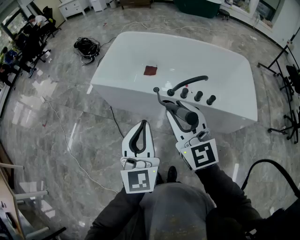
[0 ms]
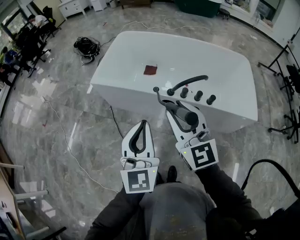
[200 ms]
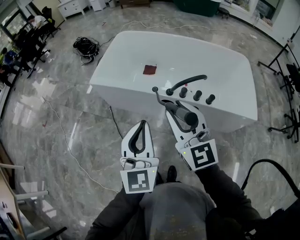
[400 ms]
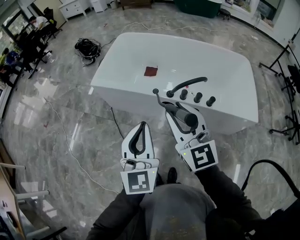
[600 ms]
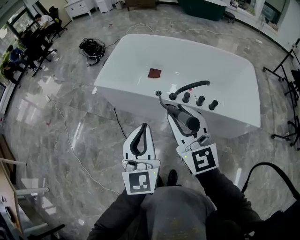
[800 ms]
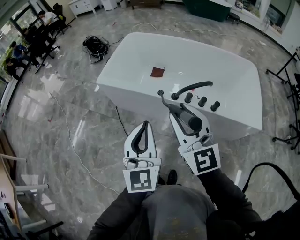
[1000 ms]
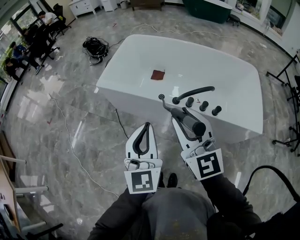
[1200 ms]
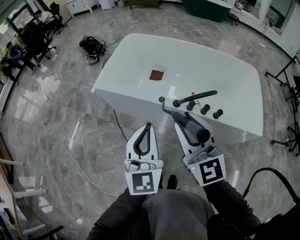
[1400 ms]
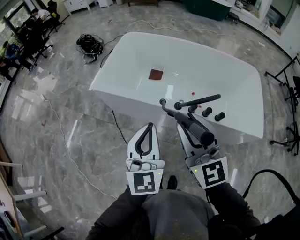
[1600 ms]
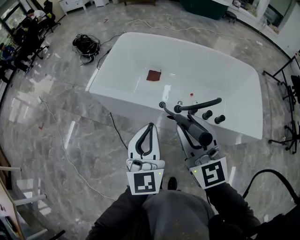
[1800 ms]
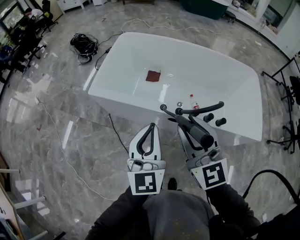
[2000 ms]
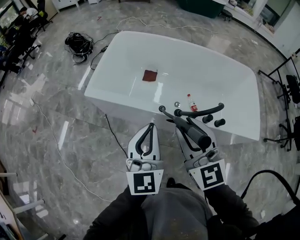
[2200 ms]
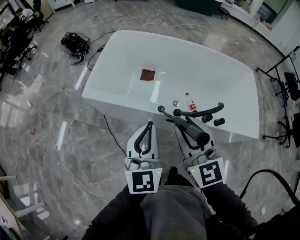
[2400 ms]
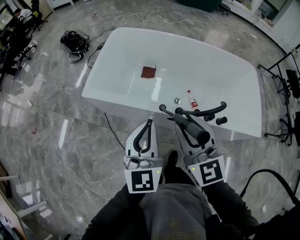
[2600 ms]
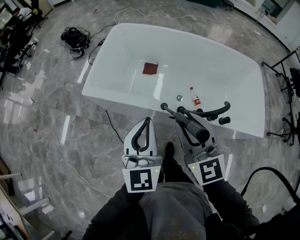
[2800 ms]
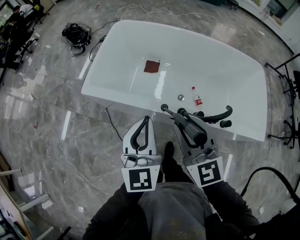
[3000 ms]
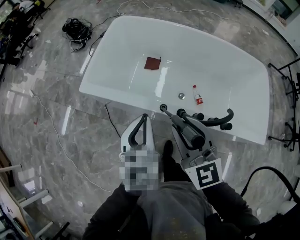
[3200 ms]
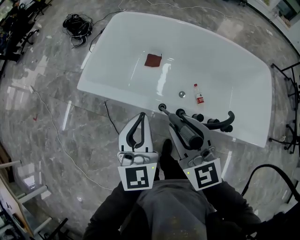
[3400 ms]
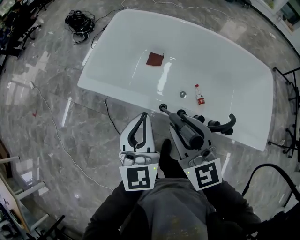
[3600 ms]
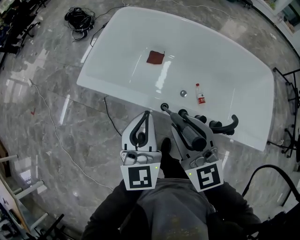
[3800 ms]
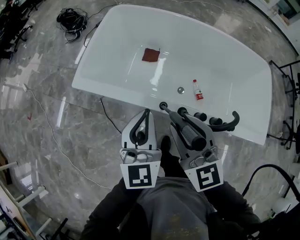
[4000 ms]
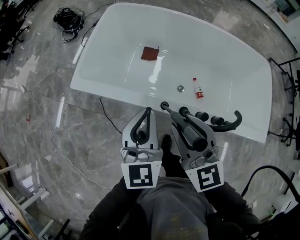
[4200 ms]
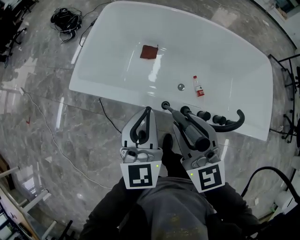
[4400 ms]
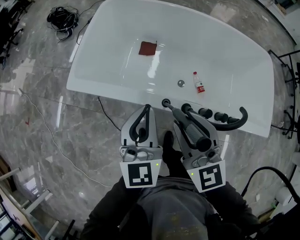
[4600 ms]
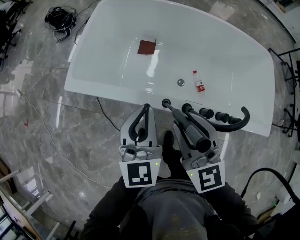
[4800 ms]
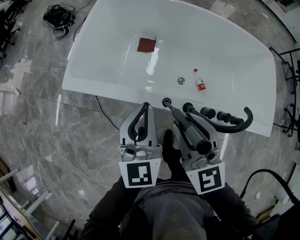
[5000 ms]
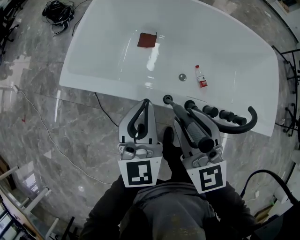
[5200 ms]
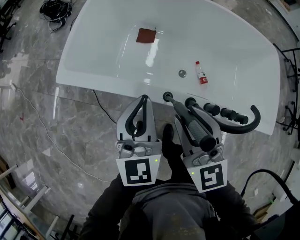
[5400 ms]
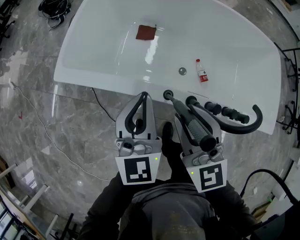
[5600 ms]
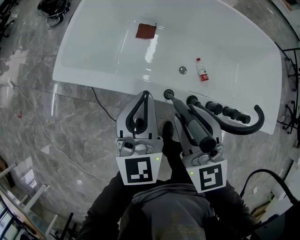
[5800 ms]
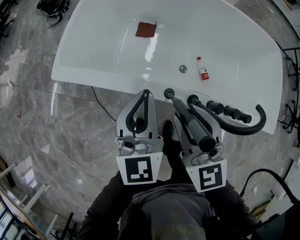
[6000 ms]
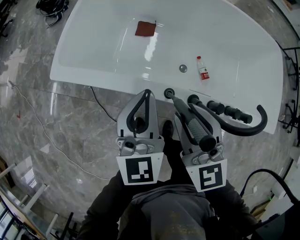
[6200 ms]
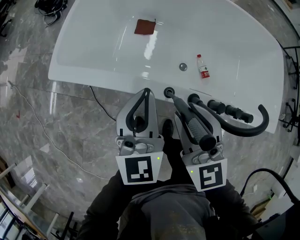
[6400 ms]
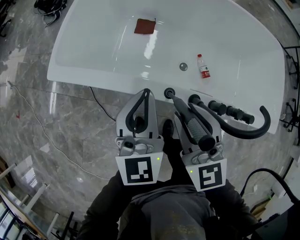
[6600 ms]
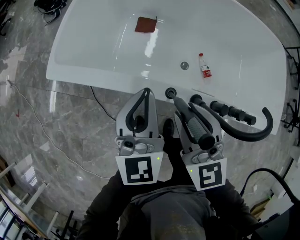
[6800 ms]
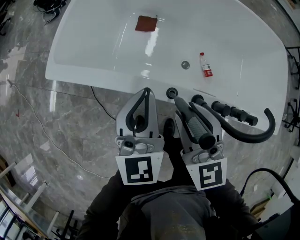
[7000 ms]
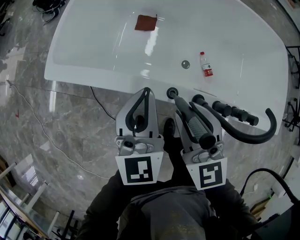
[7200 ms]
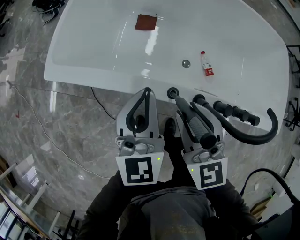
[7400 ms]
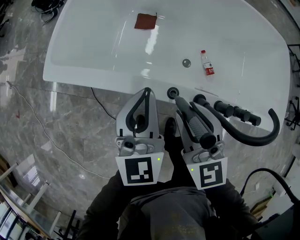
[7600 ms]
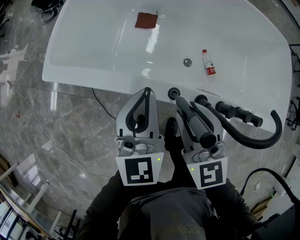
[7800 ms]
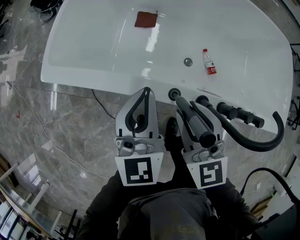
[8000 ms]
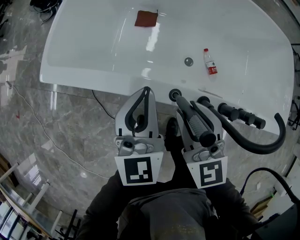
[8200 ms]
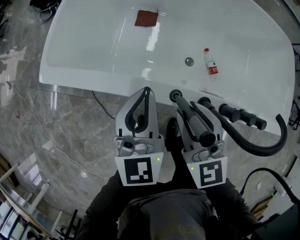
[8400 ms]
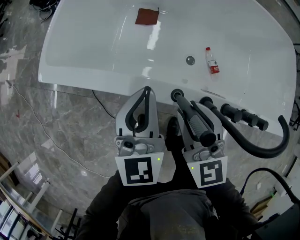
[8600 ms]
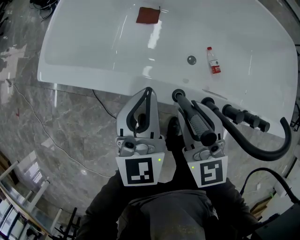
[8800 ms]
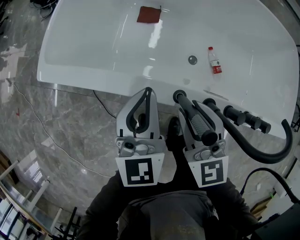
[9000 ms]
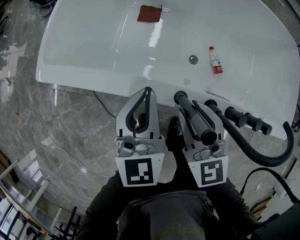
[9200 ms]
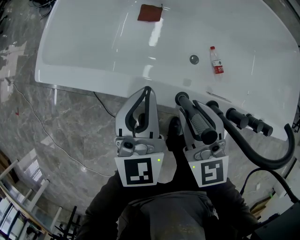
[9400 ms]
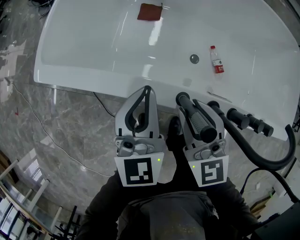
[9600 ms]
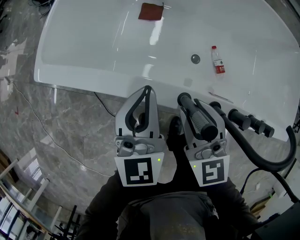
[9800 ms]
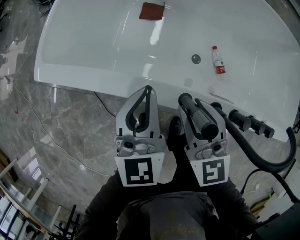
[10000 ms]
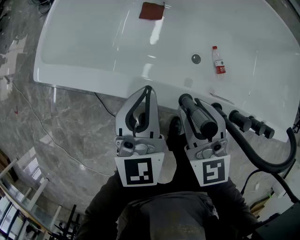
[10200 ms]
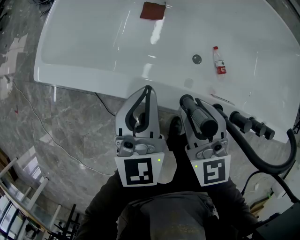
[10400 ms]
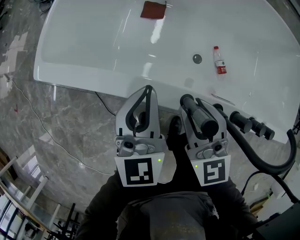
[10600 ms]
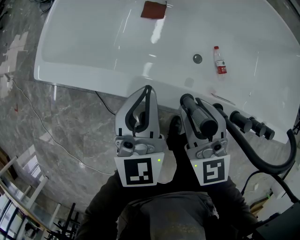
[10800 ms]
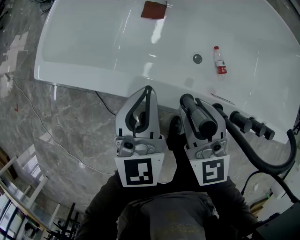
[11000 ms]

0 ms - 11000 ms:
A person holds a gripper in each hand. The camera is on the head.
0 ms - 1600 ms: The two grippers go about 10 cm forward.
1600 ms - 3200 ms: The right gripper travels forward and downward by about 20 cm. The left gripper is displaced forward by some 20 cm.
3200 ms - 4800 ms: Both grippers move downward and forward, about 10 cm.
4800 ms - 6200 ms: The two grippers go approximately 5 cm downward.
6200 ms - 7800 ms: Both grippers move downward, some 5 cm.
7800 ms - 9400 ms: The grippers both shift downward by roughly 5 cm.
9400 ms - 11000 ms: There are only small adjustments of the grippers.

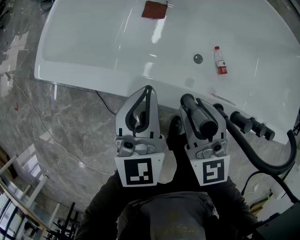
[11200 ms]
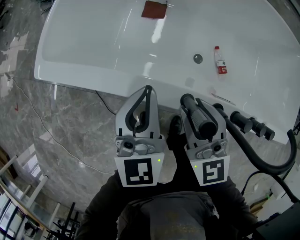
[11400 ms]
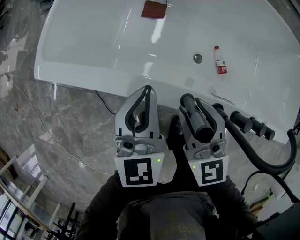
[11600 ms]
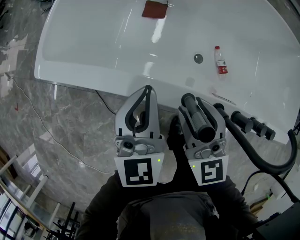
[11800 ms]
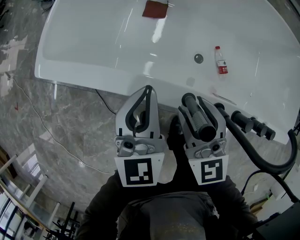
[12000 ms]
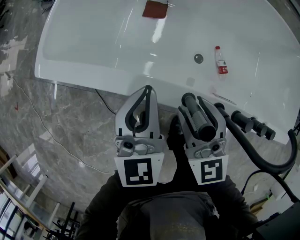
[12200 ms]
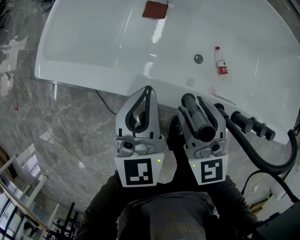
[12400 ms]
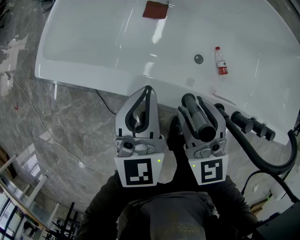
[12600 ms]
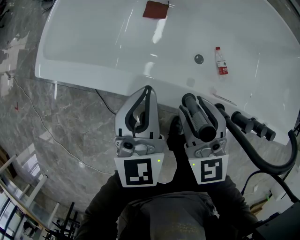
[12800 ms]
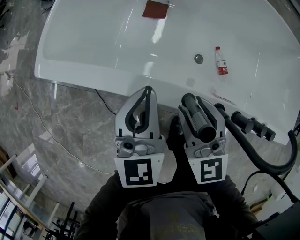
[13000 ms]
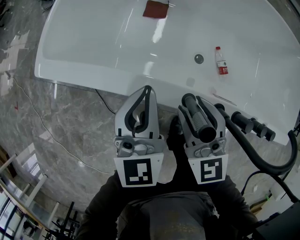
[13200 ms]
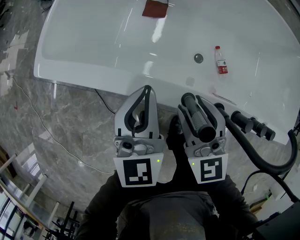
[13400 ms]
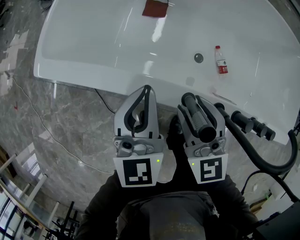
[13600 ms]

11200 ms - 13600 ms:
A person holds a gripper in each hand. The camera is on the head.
11200 ms - 13600 ms: The two grippers keep their place.

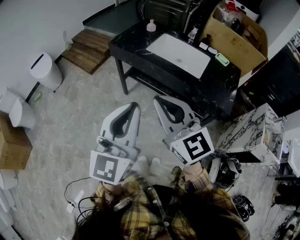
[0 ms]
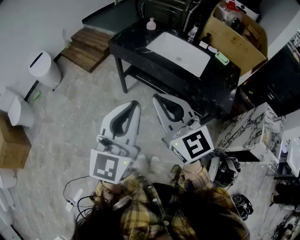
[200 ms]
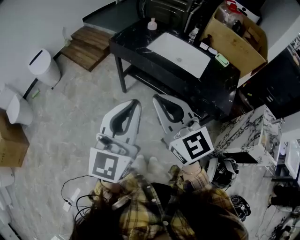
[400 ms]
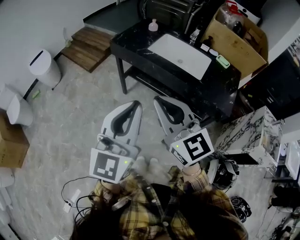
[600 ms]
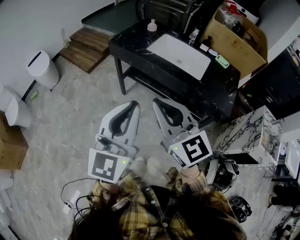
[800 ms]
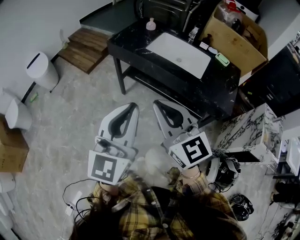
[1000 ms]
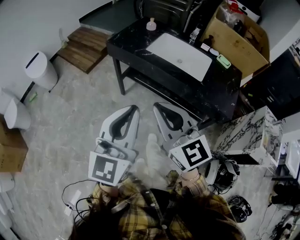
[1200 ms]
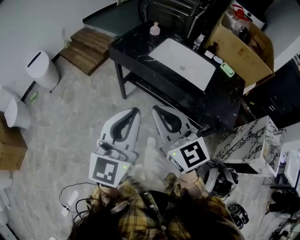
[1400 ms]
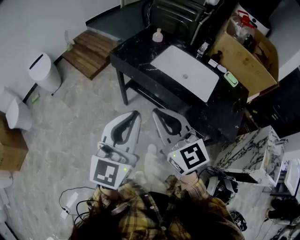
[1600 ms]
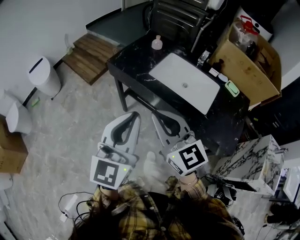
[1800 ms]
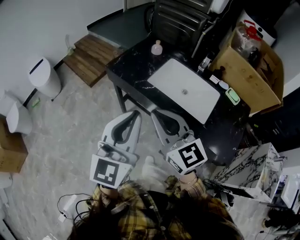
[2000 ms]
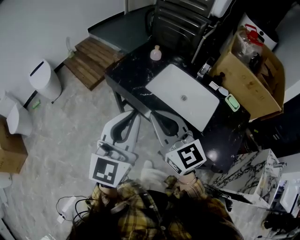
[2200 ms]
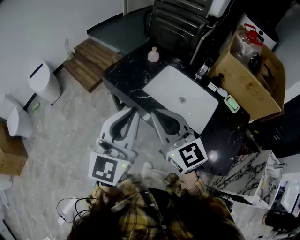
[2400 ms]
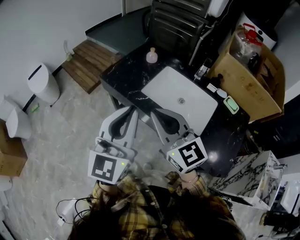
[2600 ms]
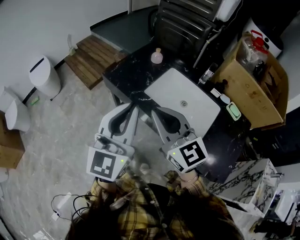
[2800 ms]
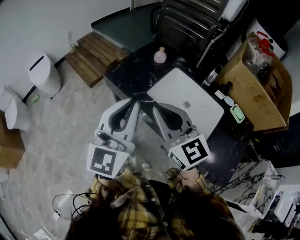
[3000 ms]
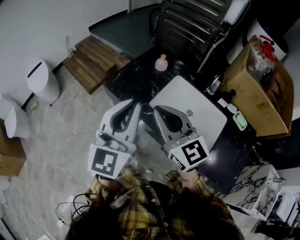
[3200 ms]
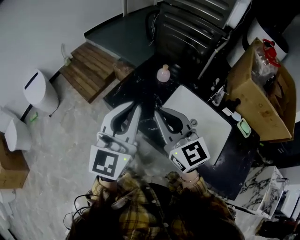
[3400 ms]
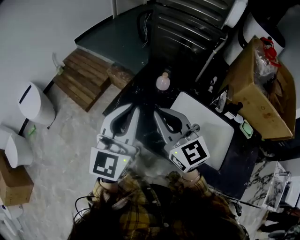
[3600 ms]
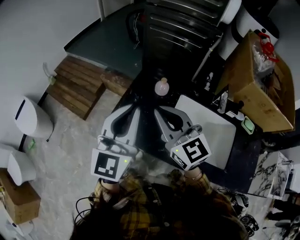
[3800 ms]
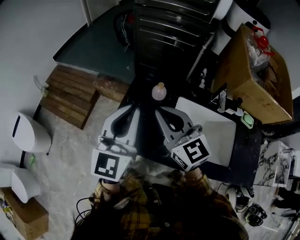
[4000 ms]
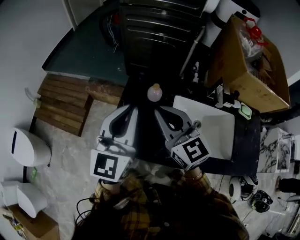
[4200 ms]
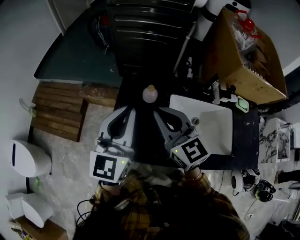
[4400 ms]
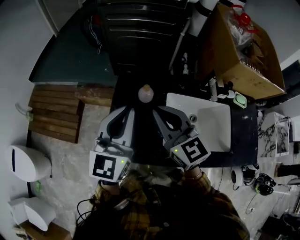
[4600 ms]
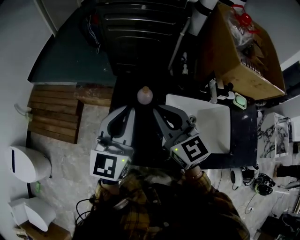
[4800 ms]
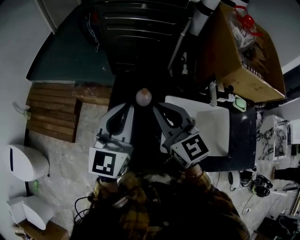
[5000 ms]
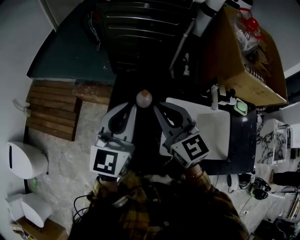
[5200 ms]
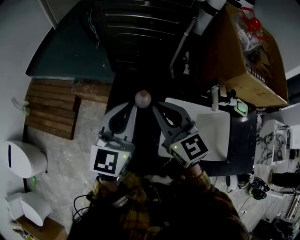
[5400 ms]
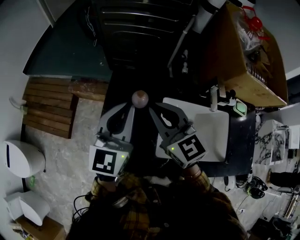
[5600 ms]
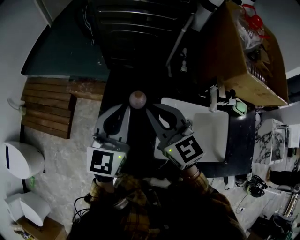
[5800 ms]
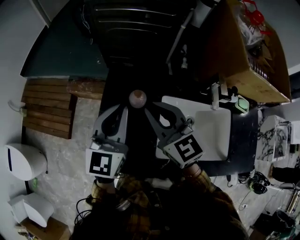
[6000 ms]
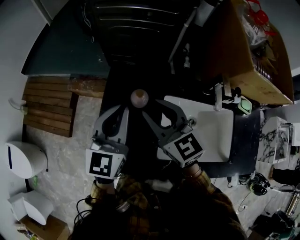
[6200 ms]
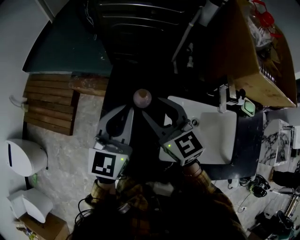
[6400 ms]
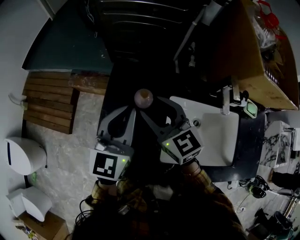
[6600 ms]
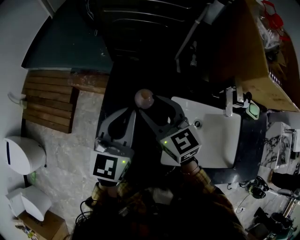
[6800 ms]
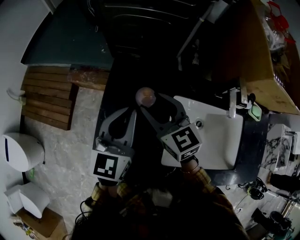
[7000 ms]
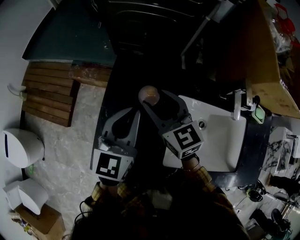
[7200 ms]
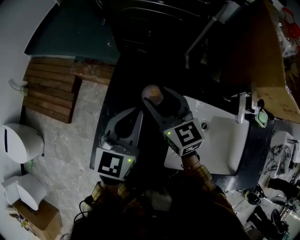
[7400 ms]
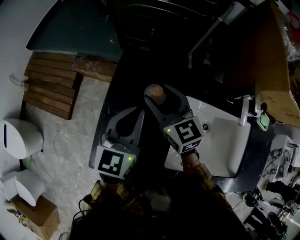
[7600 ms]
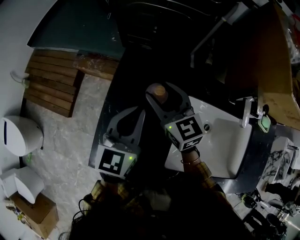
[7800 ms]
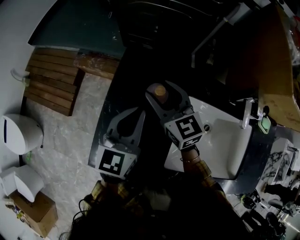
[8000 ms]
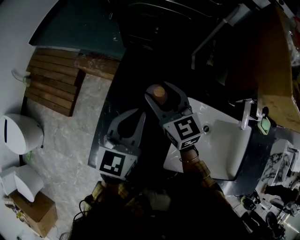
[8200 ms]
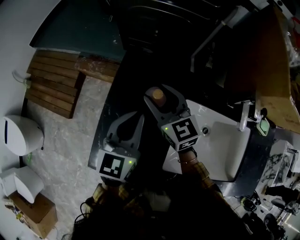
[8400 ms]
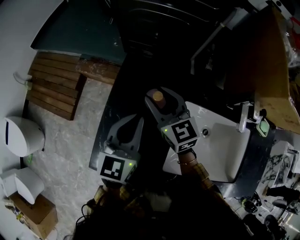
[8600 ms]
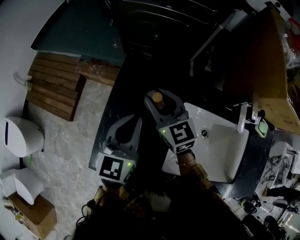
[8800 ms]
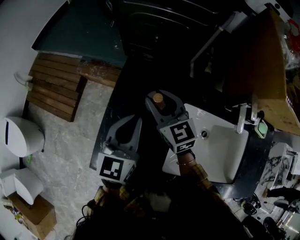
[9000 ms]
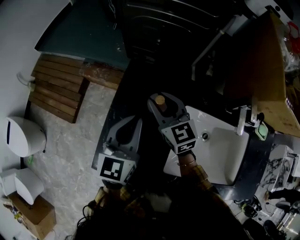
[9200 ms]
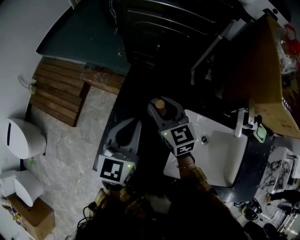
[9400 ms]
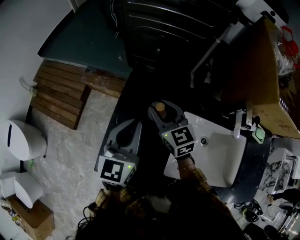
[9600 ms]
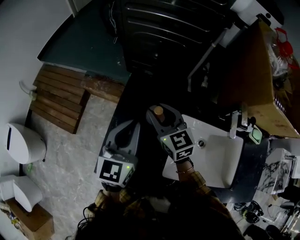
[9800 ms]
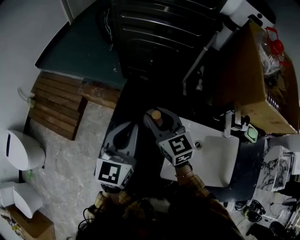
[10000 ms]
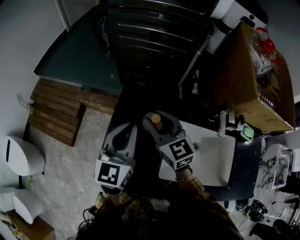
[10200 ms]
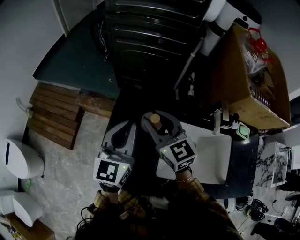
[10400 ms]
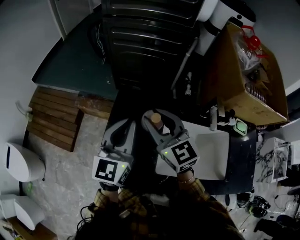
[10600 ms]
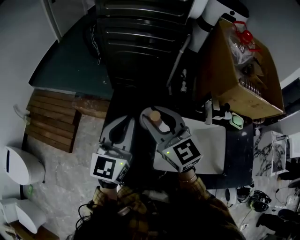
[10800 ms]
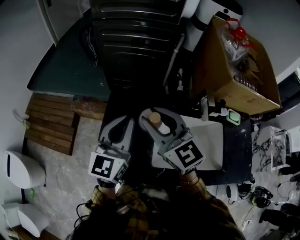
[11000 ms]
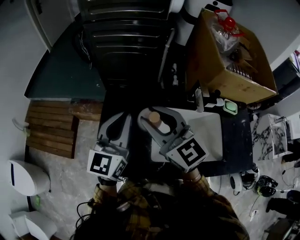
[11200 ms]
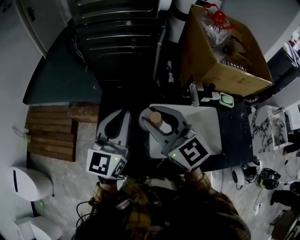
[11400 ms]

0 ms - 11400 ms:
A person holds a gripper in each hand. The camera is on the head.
0 ms - 1400 ms: The grippers both shift forward by some 5 cm.
1400 ms - 2800 ms: Both grippers move forward, some 25 cm.
2800 ms - 4200 ms: The left gripper ends up some 40 cm from where it was, and changes its angle by approximately 30 degrees. Meanwhile the right gripper ends up about 35 cm from where it was, and turns by roughly 30 degrees.
4200 ms - 5600 ms: The left gripper moves forward, downward and to the right, approximately 15 cm. The right gripper moves forward, roughly 10 cm.
5600 ms - 7200 ms: The left gripper travels downward by some 10 cm. Meanwhile the right gripper shifts approximately 15 cm downward and forward, and opens.
7200 ms - 8600 ms: The grippers stay close to where they were, moving slightly.
8600 ms - 10000 ms: The grippers both shift upward by some 5 cm.
10000 ms - 11400 ms: The left gripper is displaced upward, backward and to the right by approximately 15 cm; the right gripper shifts about 20 cm upward and backward.
